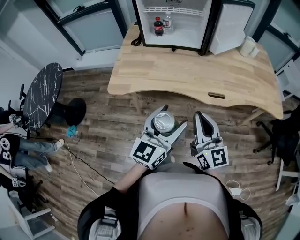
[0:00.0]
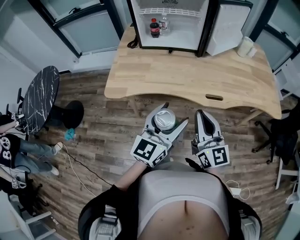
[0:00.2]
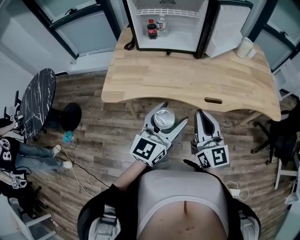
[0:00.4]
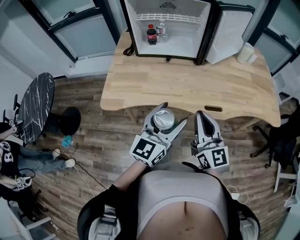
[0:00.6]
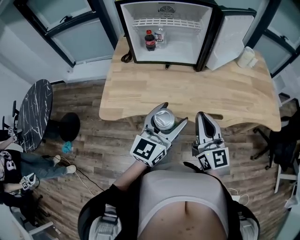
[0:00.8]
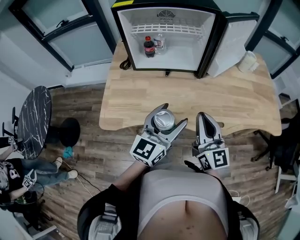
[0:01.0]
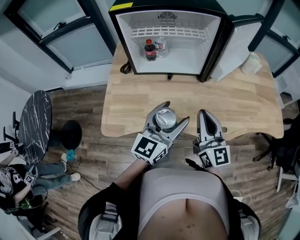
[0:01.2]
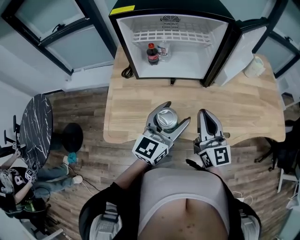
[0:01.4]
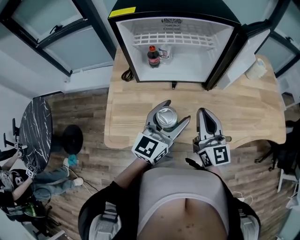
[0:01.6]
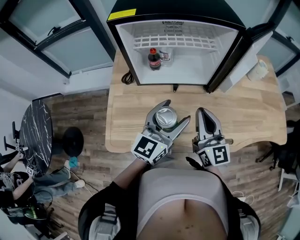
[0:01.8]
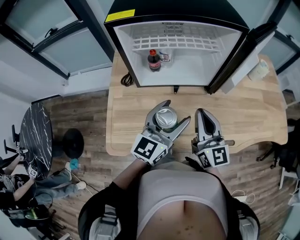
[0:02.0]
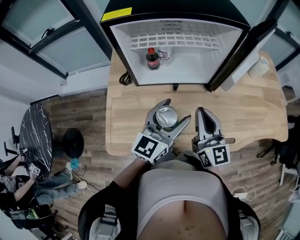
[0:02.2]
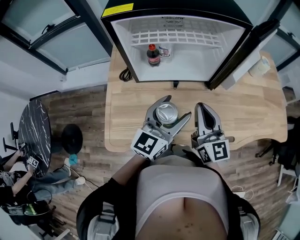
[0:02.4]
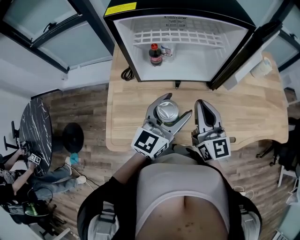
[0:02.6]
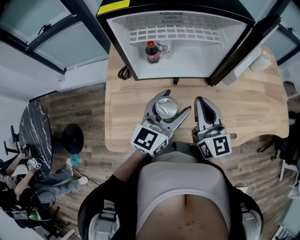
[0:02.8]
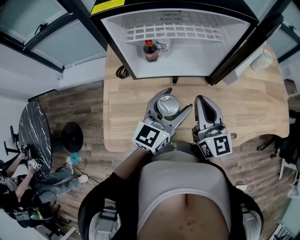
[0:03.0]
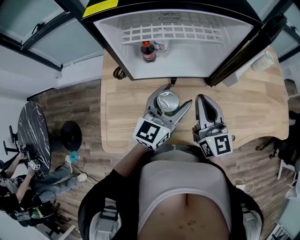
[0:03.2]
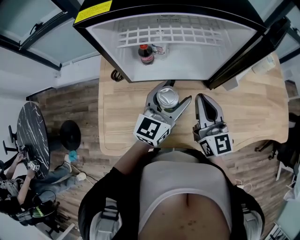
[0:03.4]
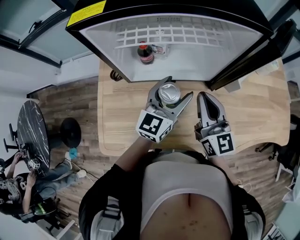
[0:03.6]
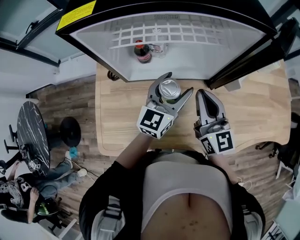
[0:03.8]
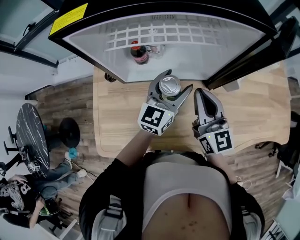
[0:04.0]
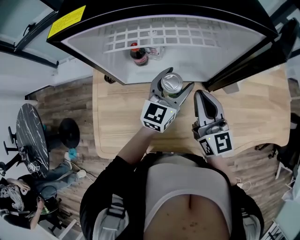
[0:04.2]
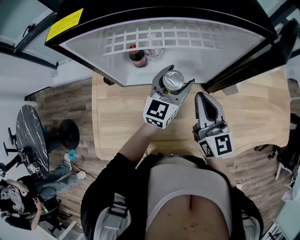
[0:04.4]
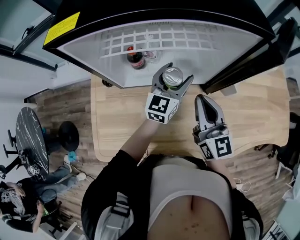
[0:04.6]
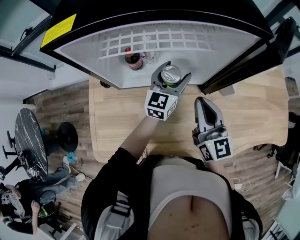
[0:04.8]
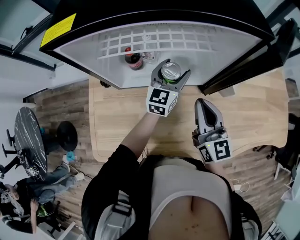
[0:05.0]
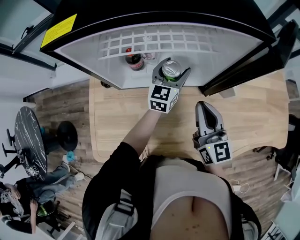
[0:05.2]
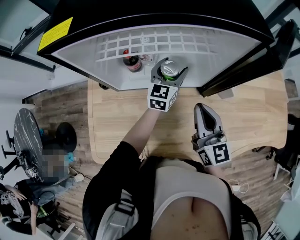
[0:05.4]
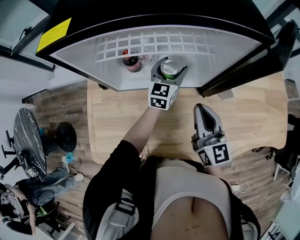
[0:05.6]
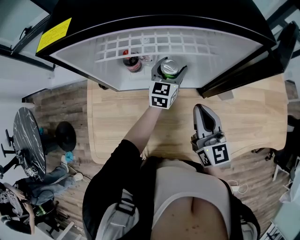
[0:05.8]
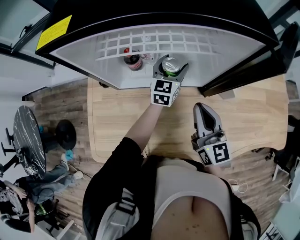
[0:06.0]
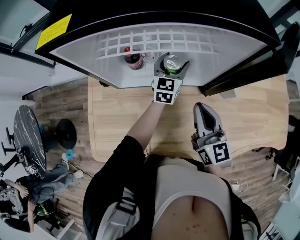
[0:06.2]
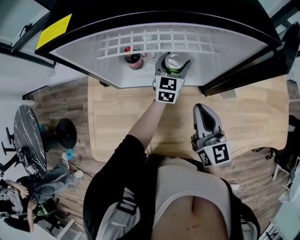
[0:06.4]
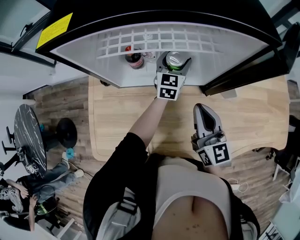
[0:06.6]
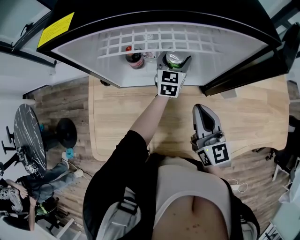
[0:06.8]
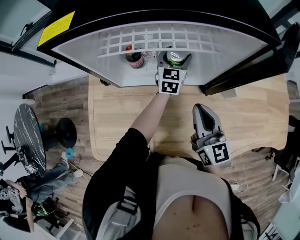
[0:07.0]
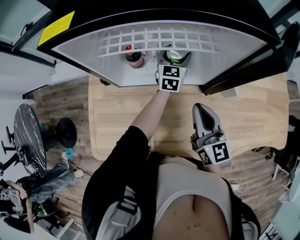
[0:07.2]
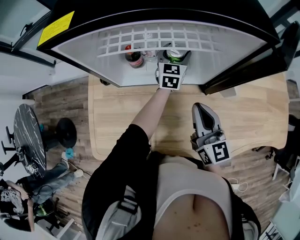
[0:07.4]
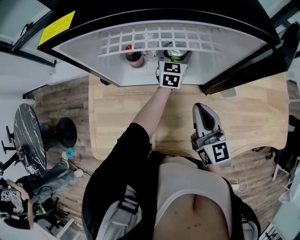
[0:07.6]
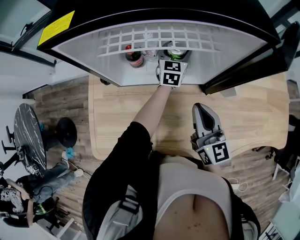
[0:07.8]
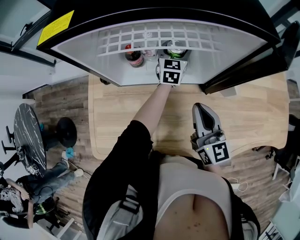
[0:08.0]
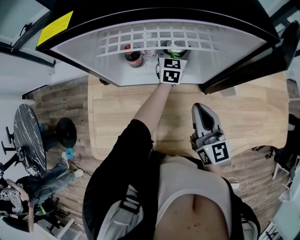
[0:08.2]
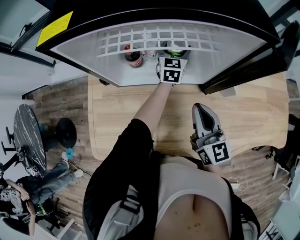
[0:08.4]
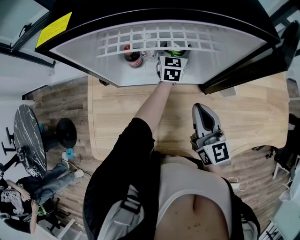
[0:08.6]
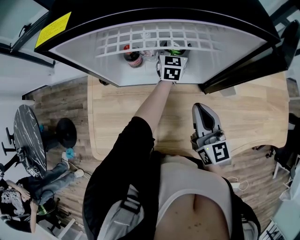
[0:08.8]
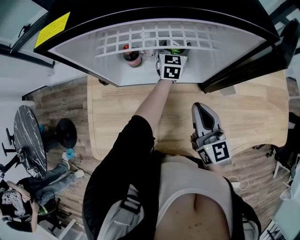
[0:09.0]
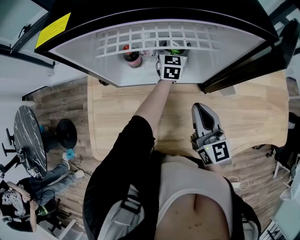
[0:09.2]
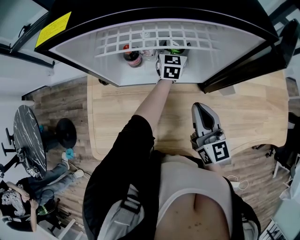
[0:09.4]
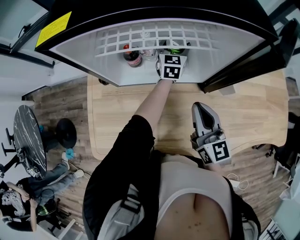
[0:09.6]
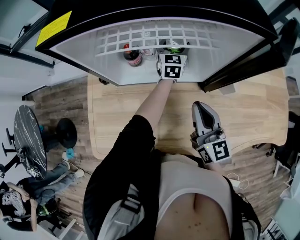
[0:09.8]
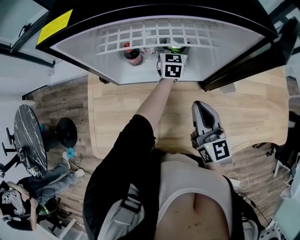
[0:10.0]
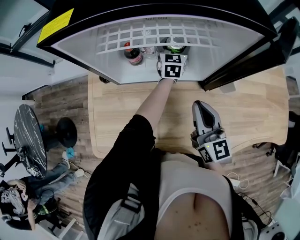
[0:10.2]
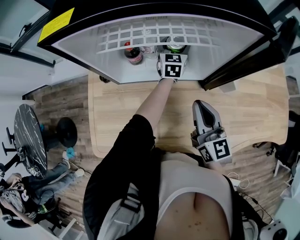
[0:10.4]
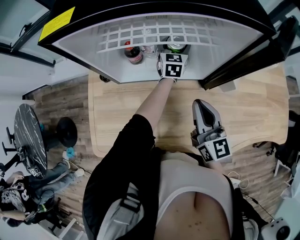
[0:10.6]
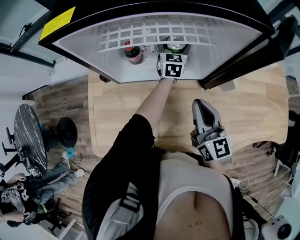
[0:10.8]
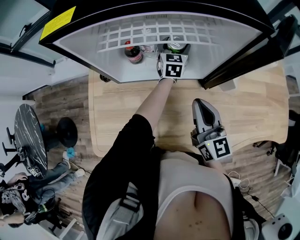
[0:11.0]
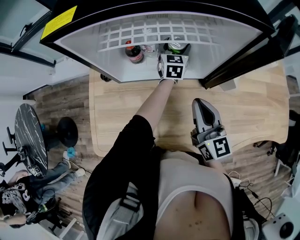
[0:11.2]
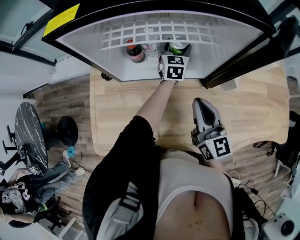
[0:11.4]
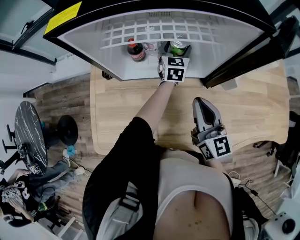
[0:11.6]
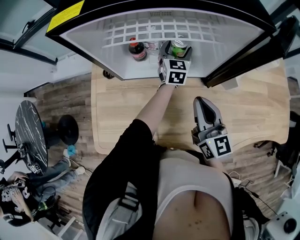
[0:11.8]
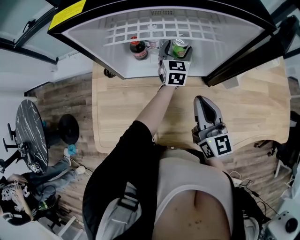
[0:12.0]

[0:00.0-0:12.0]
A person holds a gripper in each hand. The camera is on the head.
0:00.0 to 0:01.6: The grippers both shift forward by some 30 cm.
0:01.6 to 0:03.0: The two grippers go about 5 cm forward.
0:03.0 to 0:04.4: The right gripper moves forward, roughly 10 cm; the left gripper goes about 20 cm forward and downward.
0:04.4 to 0:06.0: The left gripper is displaced forward and downward by about 10 cm.
0:06.0 to 0:07.6: The left gripper is displaced forward by approximately 5 cm.
0:07.6 to 0:09.0: The grippers stay close to where they were, moving slightly.
0:09.0 to 0:10.4: Both grippers stay put.
0:10.4 to 0:12.0: The left gripper shifts by about 5 cm.

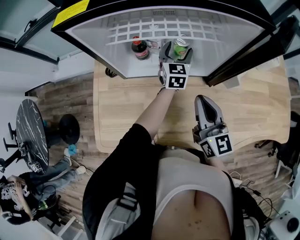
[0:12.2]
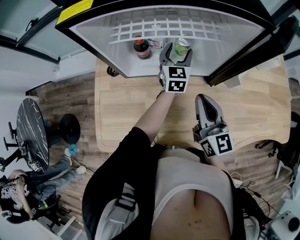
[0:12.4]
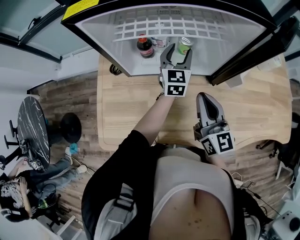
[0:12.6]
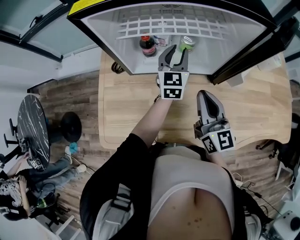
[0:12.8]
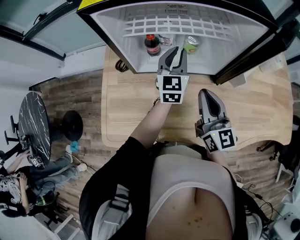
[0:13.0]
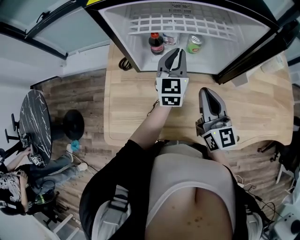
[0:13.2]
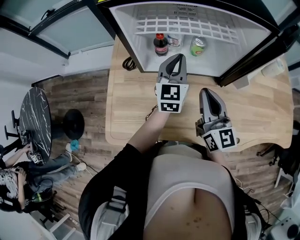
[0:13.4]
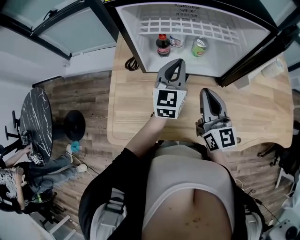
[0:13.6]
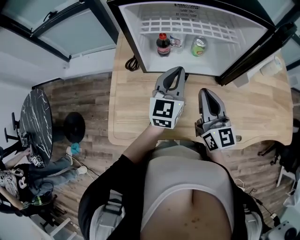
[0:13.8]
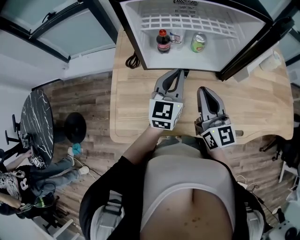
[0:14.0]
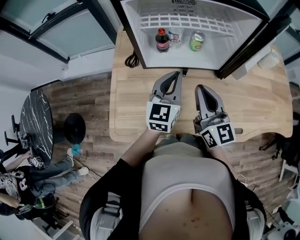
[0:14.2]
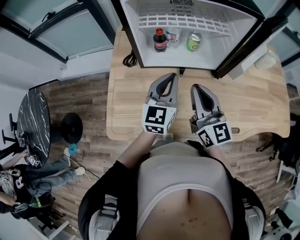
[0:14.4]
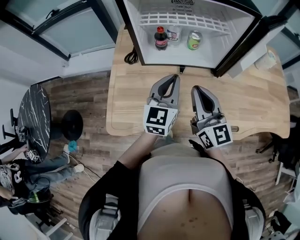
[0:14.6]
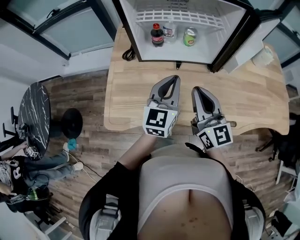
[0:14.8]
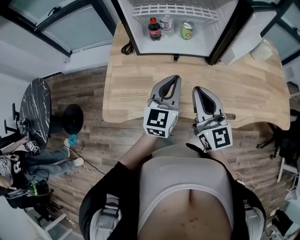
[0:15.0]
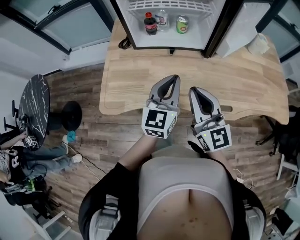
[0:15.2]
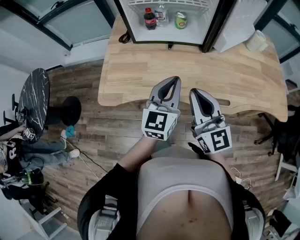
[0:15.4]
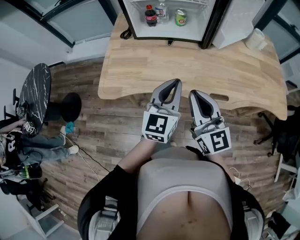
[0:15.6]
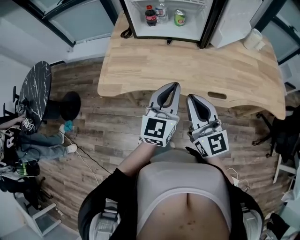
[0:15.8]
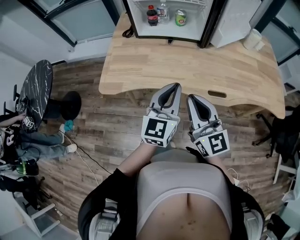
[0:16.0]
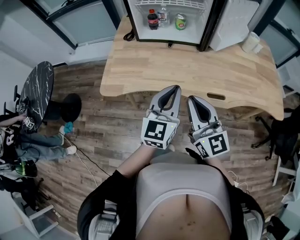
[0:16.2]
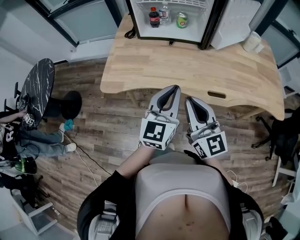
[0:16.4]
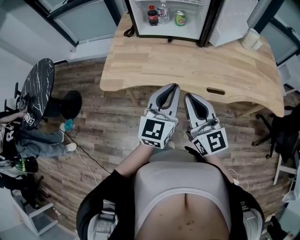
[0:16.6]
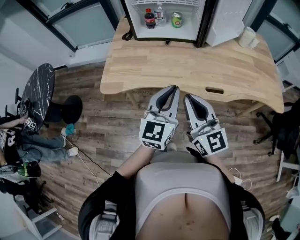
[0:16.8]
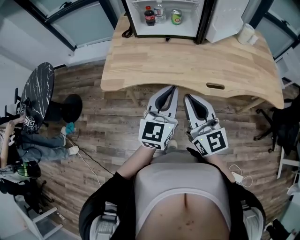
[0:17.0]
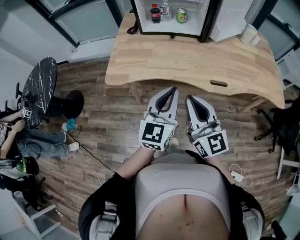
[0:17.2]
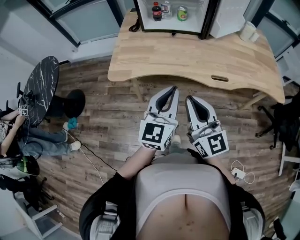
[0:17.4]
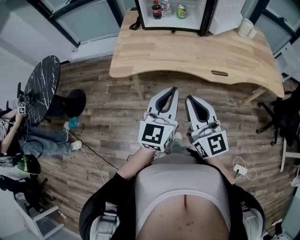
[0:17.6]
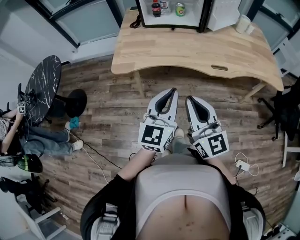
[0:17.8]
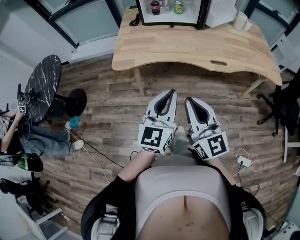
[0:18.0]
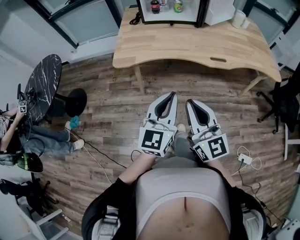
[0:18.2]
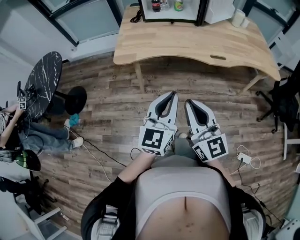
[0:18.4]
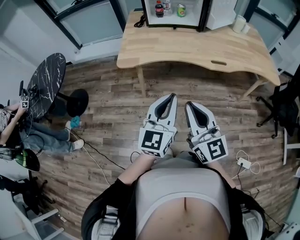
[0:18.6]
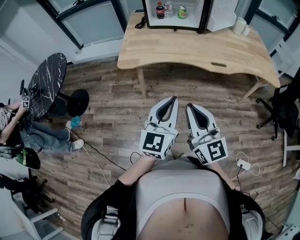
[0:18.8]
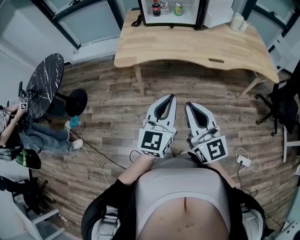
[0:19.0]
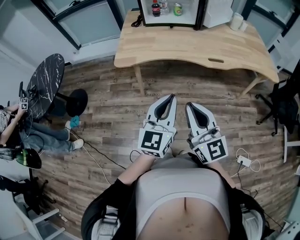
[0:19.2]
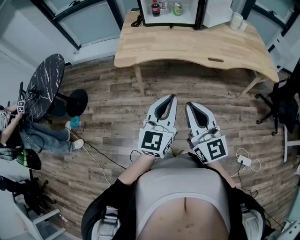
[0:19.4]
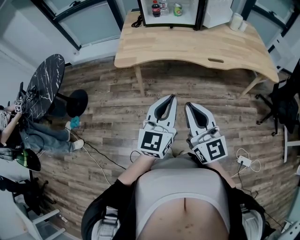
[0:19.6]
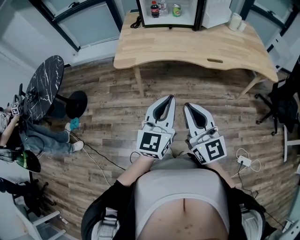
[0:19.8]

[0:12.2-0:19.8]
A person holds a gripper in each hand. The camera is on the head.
0:12.2 to 0:13.8: The left gripper is displaced backward, upward and to the left by roughly 25 cm, and closes its fingers, while the right gripper heads to the left, covering about 5 cm.
0:13.8 to 0:15.2: The grippers both shift backward by about 20 cm.
0:15.2 to 0:16.8: Both grippers move backward, about 15 cm.
0:16.8 to 0:18.2: The two grippers go approximately 25 cm backward and to the left.
0:18.2 to 0:19.8: The grippers make only small movements.

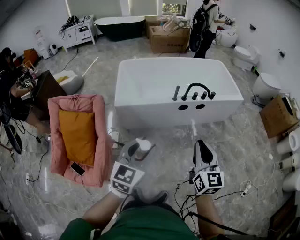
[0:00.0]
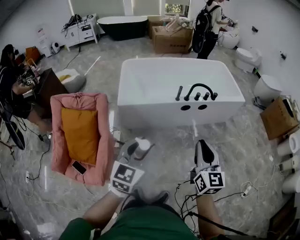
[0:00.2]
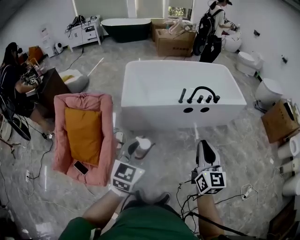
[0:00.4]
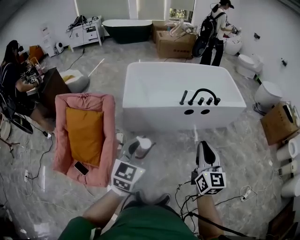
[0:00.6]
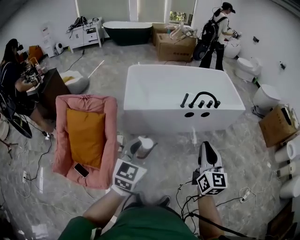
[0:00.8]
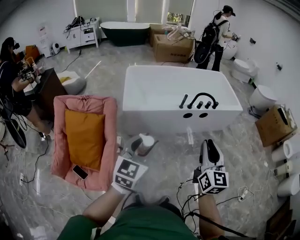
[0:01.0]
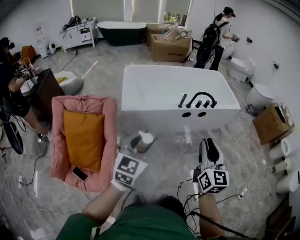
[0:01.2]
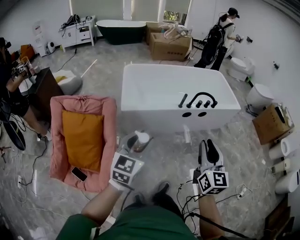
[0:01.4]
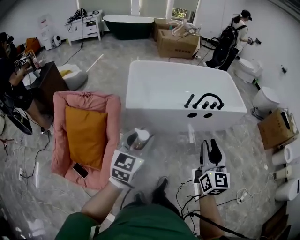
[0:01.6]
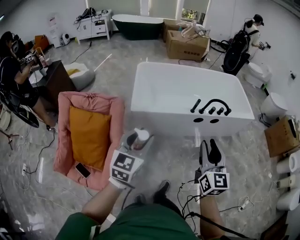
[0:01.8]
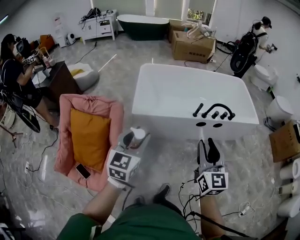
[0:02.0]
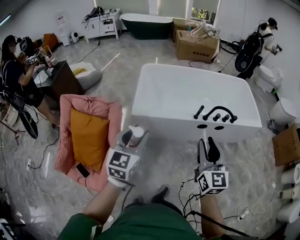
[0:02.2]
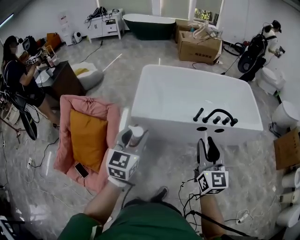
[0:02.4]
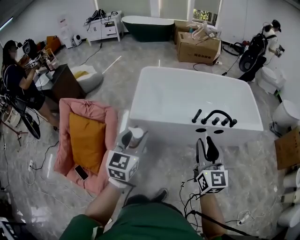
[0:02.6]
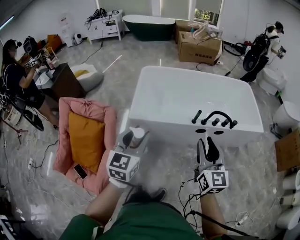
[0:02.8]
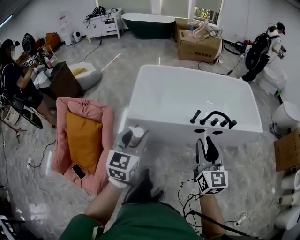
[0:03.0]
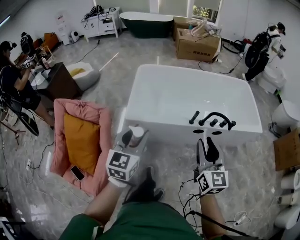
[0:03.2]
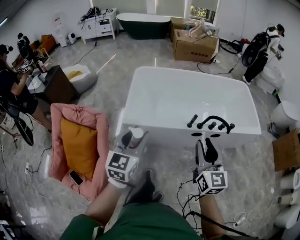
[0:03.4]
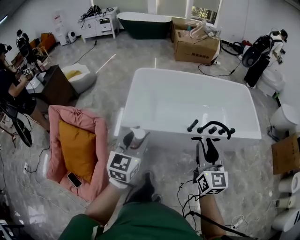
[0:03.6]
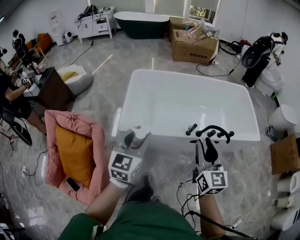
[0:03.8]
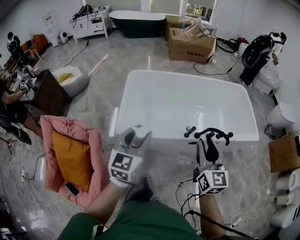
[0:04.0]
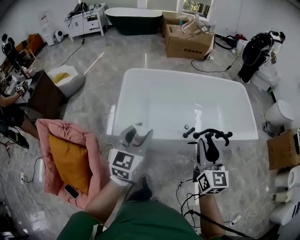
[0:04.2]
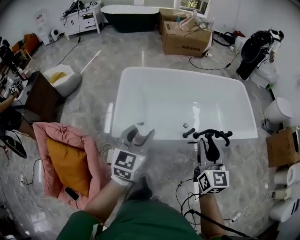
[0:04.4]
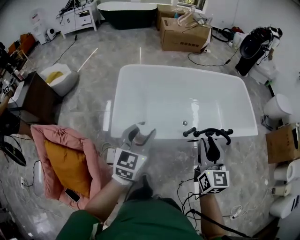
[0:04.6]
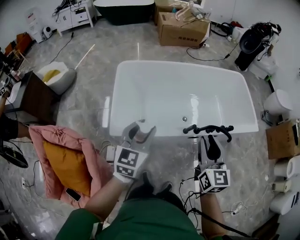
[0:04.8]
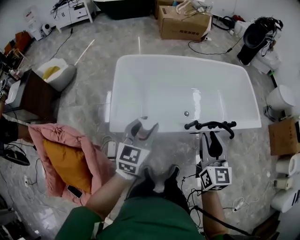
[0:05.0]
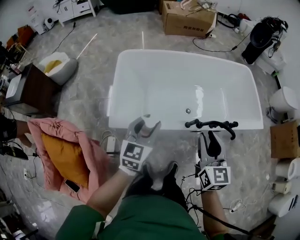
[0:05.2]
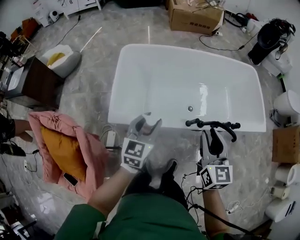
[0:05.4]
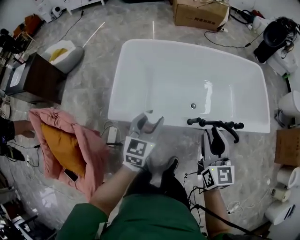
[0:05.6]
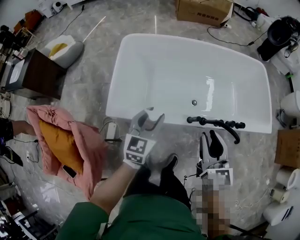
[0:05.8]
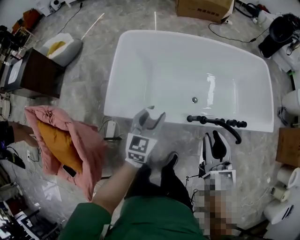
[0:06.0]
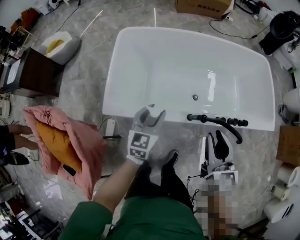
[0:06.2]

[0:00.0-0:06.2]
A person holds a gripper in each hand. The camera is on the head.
0:00.0 to 0:01.6: Both grippers travel together to the left, roughly 20 cm. The right gripper opens up.
0:01.6 to 0:03.2: The grippers both shift forward and to the right by approximately 30 cm.
0:03.2 to 0:04.6: Both grippers travel together forward, approximately 30 cm.
0:04.6 to 0:06.2: Both grippers travel together downward, forward and to the right, roughly 25 cm.
